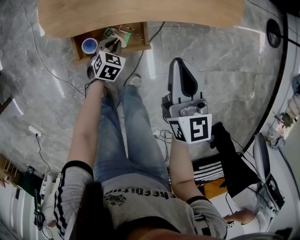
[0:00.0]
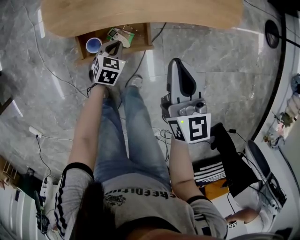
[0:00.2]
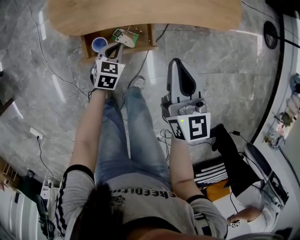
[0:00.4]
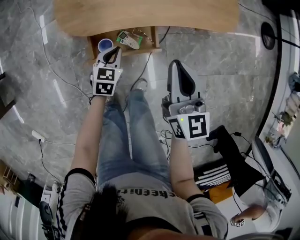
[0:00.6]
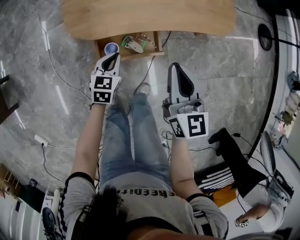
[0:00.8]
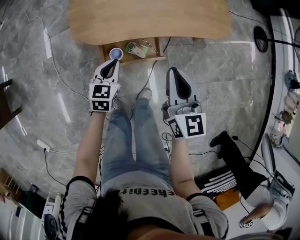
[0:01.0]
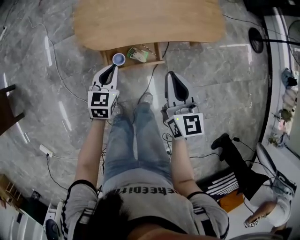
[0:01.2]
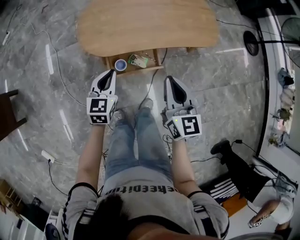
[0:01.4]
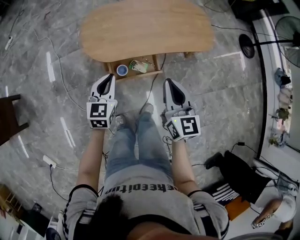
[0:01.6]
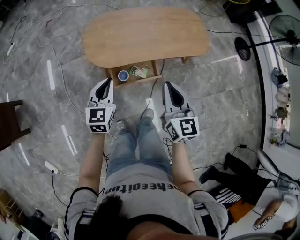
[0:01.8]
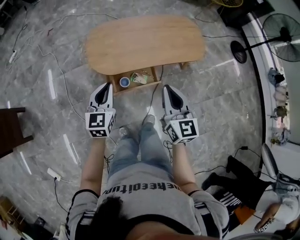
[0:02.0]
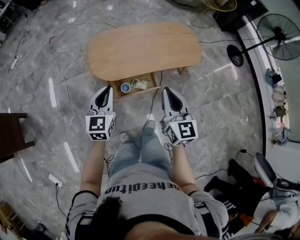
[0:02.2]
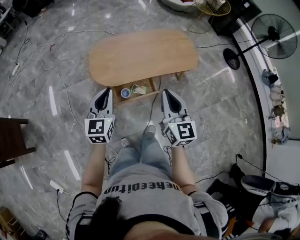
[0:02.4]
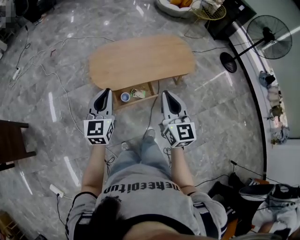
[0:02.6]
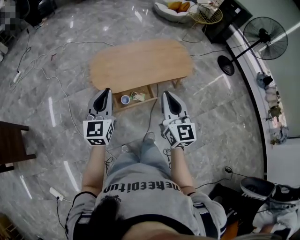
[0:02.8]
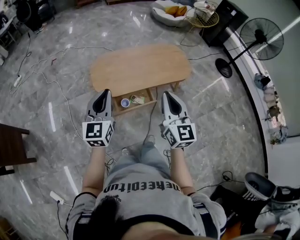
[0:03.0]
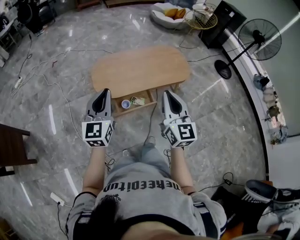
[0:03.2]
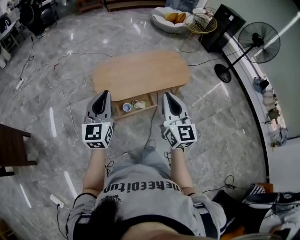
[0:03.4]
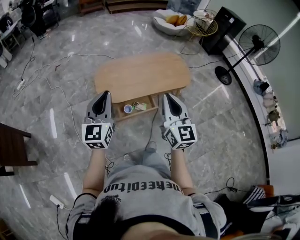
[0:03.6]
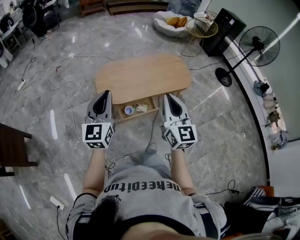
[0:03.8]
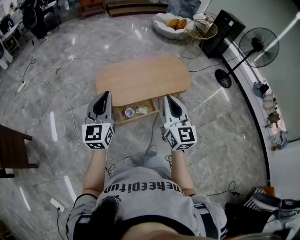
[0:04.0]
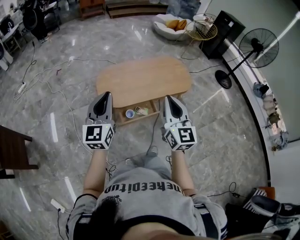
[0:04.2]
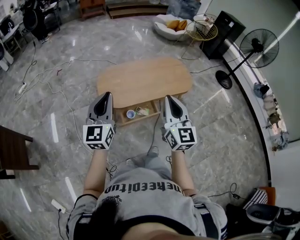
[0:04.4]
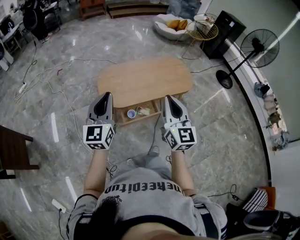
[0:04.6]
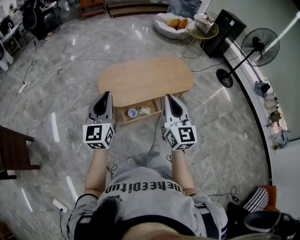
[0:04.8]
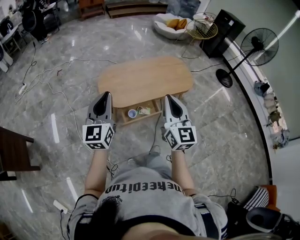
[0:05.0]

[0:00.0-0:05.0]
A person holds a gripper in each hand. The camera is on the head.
0:00.0 to 0:01.6: The left gripper heads upward and to the left, covering about 40 cm, and points its fingers some 30 degrees further upward; the right gripper shifts some 25 cm upward, to the left and backward.
0:01.6 to 0:03.4: The right gripper heads upward and backward, covering roughly 25 cm. Meanwhile the left gripper travels upward by roughly 30 cm, and rotates approximately 30 degrees.
0:03.4 to 0:05.0: There are only small adjustments of the grippers.

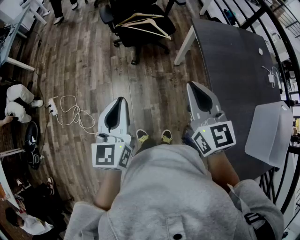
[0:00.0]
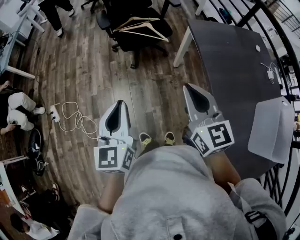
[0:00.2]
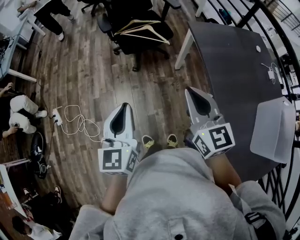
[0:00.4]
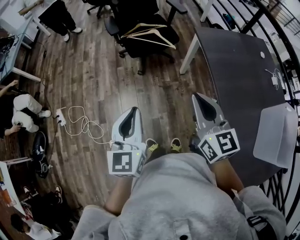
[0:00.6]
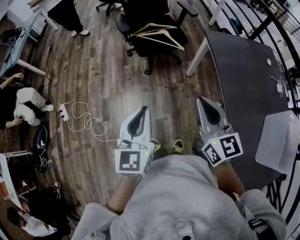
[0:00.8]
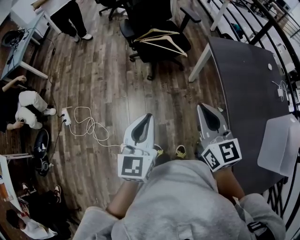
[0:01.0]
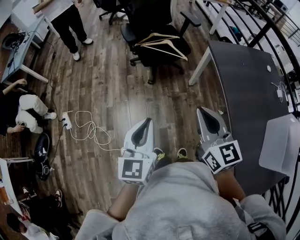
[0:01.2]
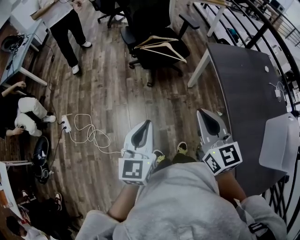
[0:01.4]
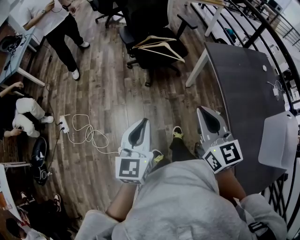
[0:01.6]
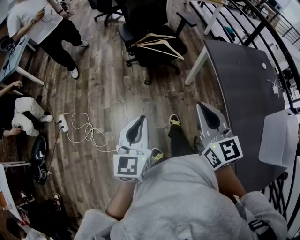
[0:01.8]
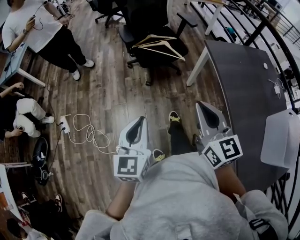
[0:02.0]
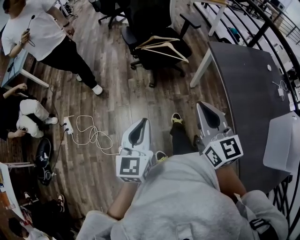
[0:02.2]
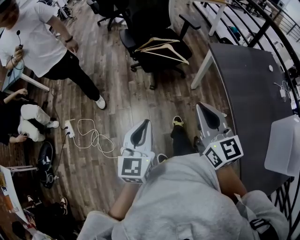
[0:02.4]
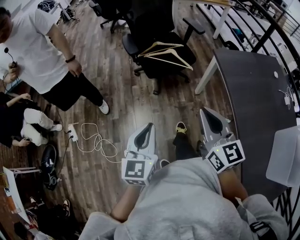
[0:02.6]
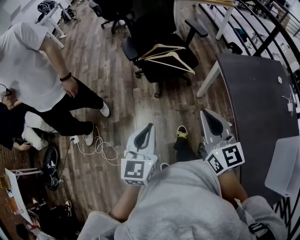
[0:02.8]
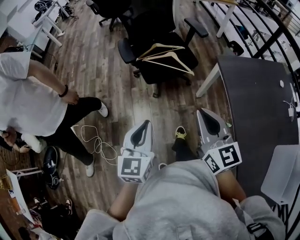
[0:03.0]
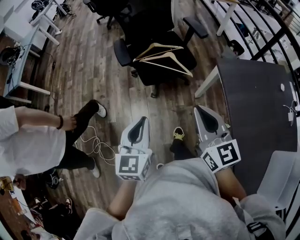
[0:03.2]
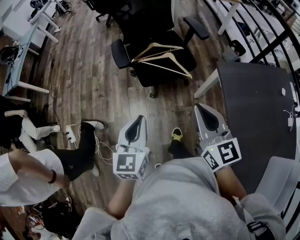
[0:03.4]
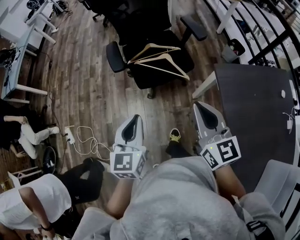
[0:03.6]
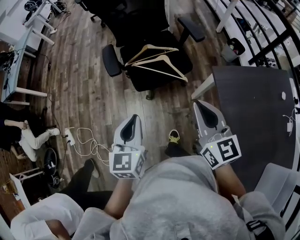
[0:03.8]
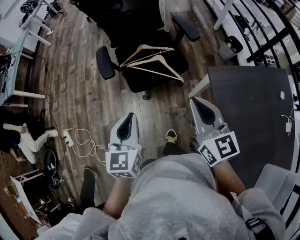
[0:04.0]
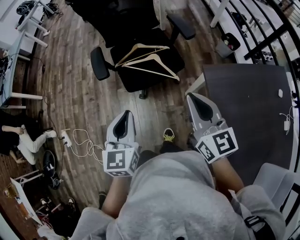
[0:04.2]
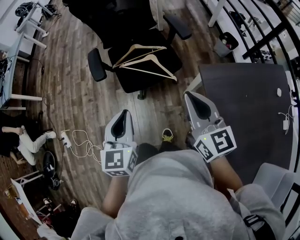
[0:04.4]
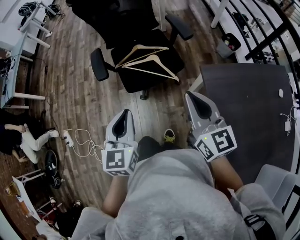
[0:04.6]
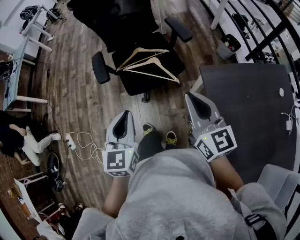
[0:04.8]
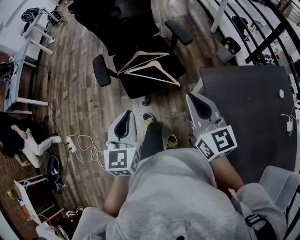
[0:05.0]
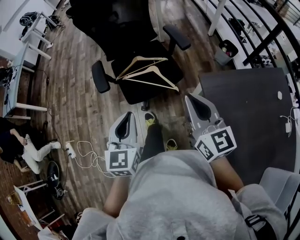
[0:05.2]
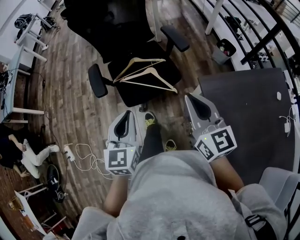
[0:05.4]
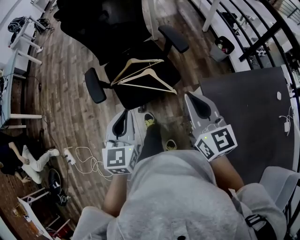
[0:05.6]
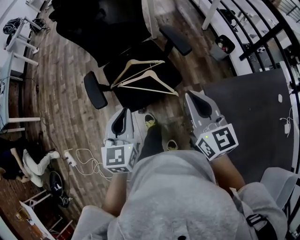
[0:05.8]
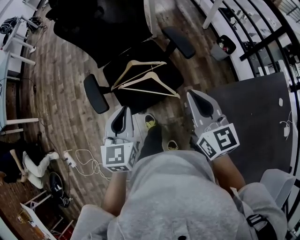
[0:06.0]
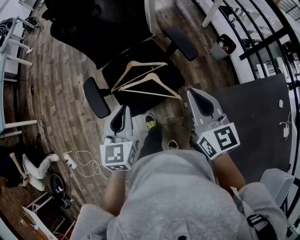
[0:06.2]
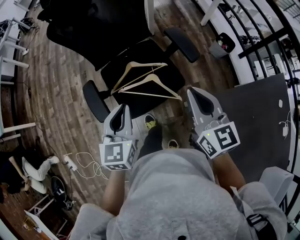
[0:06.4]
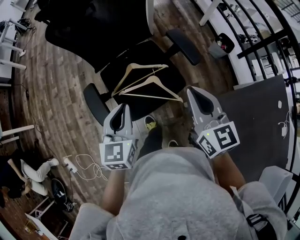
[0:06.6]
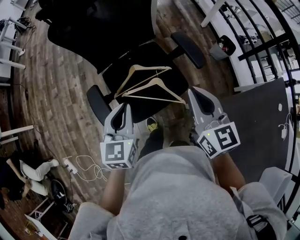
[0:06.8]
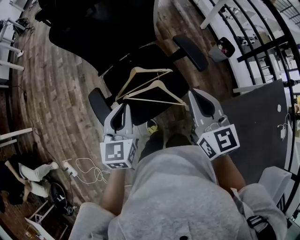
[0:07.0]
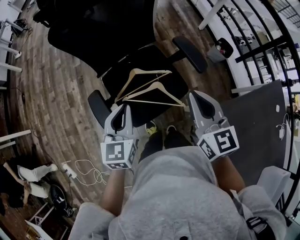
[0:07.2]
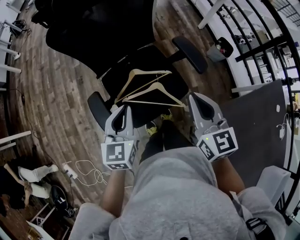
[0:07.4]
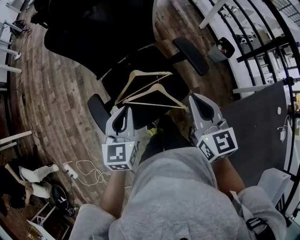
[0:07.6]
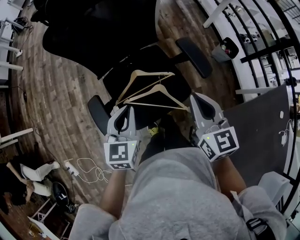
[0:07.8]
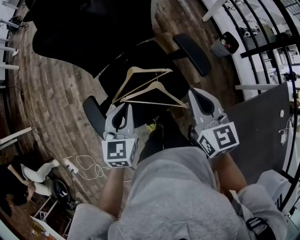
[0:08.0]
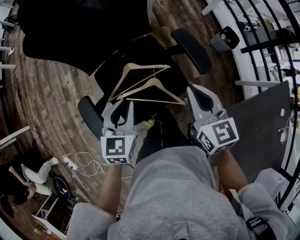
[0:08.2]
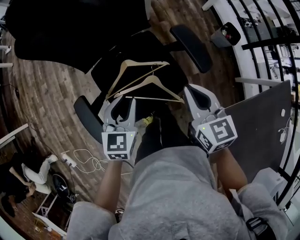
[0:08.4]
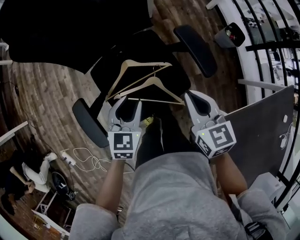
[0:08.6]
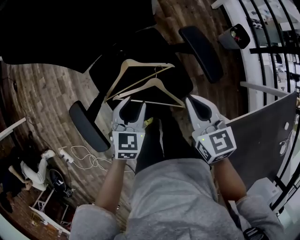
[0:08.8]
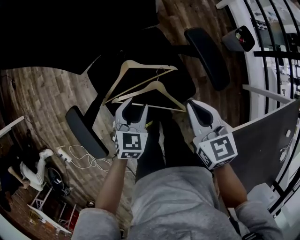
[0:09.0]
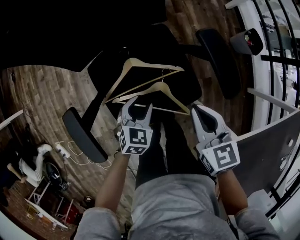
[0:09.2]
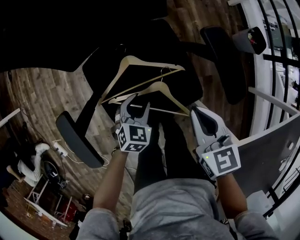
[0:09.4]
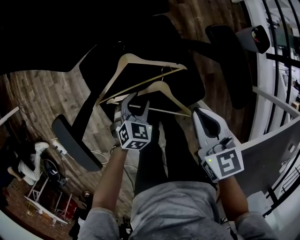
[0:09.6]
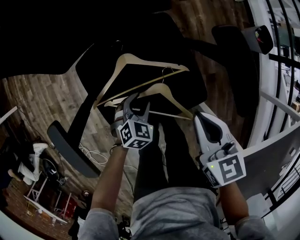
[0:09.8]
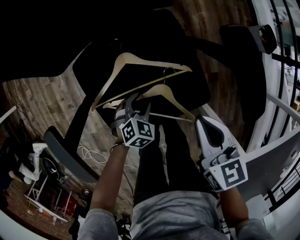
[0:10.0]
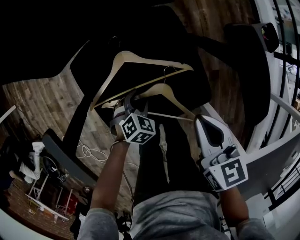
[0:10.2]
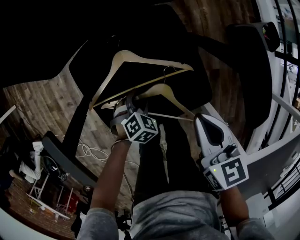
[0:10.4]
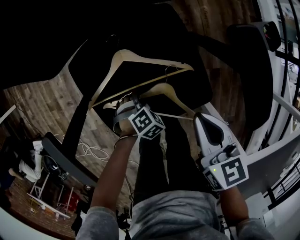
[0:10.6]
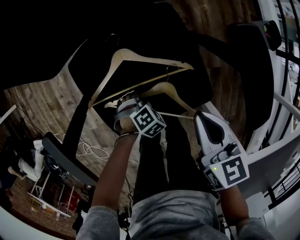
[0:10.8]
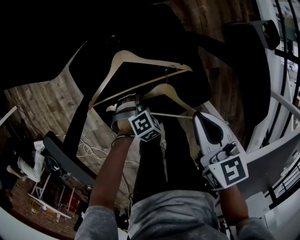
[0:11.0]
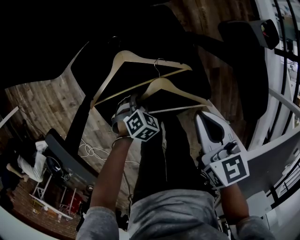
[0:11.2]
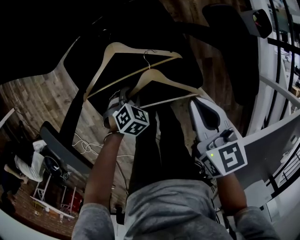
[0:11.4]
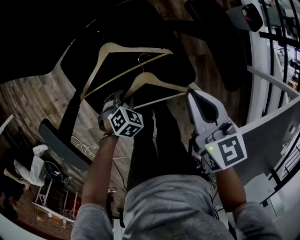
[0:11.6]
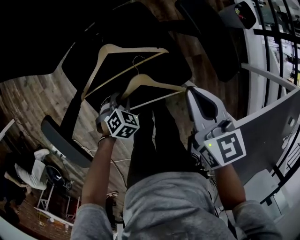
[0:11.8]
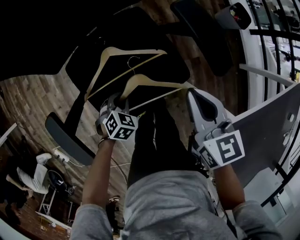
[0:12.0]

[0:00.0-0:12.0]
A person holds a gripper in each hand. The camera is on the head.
0:00.0 to 0:01.6: Both grippers travel together to the left, approximately 5 cm.
0:01.6 to 0:03.0: Both grippers move forward, approximately 20 cm.
0:03.0 to 0:04.4: The two grippers go approximately 25 cm forward and to the right.
0:04.4 to 0:06.0: Both grippers travel together forward, approximately 20 cm.
0:06.0 to 0:07.6: Both grippers move forward and to the left, roughly 15 cm.
0:07.6 to 0:09.0: The two grippers go approximately 25 cm downward and forward. The left gripper swivels some 20 degrees, and opens up. Meanwhile the right gripper rotates about 20 degrees.
0:09.0 to 0:10.4: The left gripper moves downward, some 25 cm, and rotates some 30 degrees, while the right gripper moves downward, about 15 cm.
0:10.4 to 0:12.0: Both grippers travel together upward, some 10 cm. The left gripper closes.

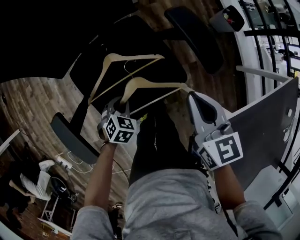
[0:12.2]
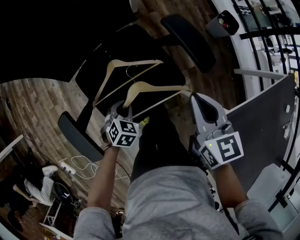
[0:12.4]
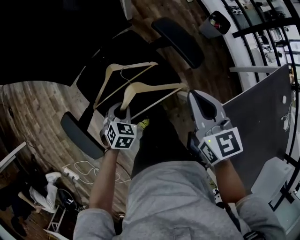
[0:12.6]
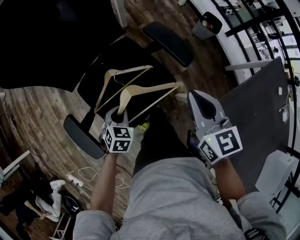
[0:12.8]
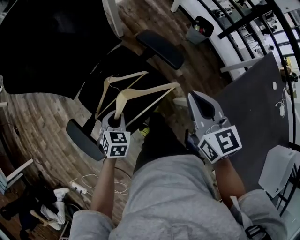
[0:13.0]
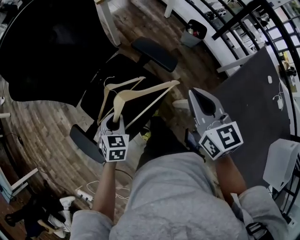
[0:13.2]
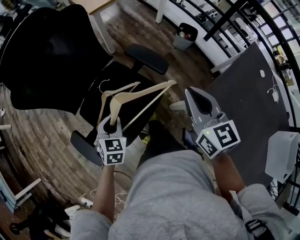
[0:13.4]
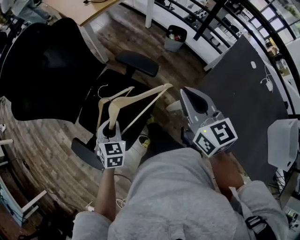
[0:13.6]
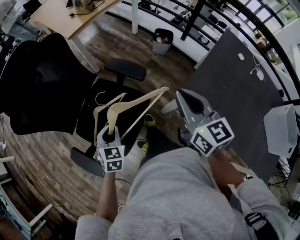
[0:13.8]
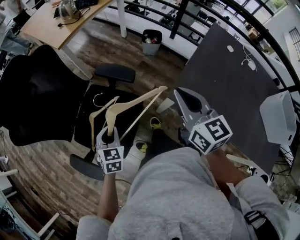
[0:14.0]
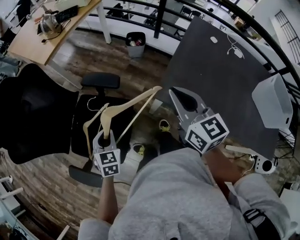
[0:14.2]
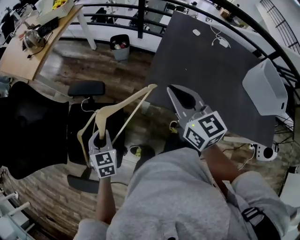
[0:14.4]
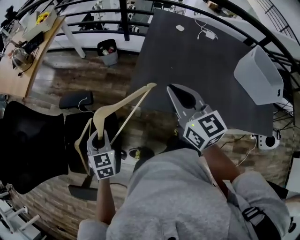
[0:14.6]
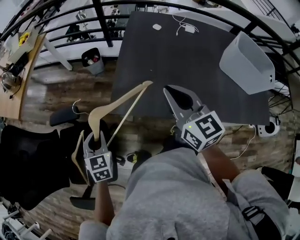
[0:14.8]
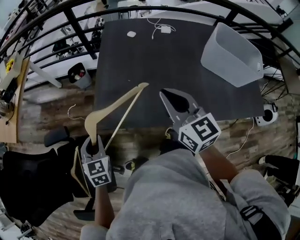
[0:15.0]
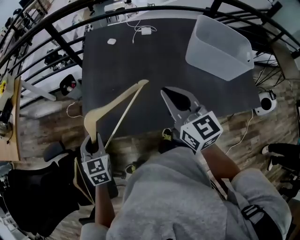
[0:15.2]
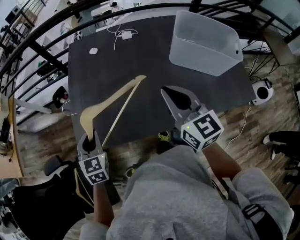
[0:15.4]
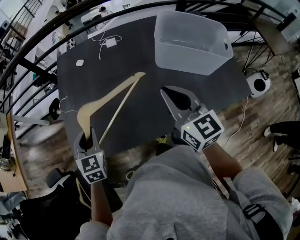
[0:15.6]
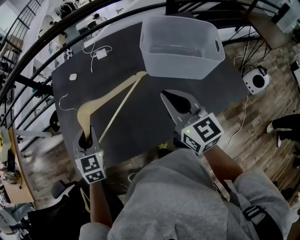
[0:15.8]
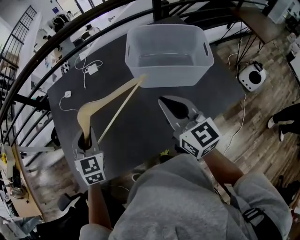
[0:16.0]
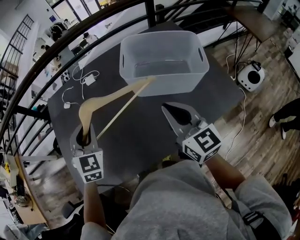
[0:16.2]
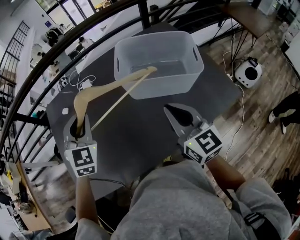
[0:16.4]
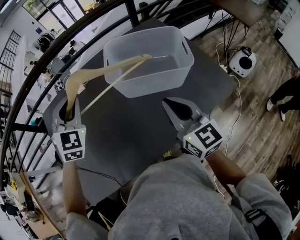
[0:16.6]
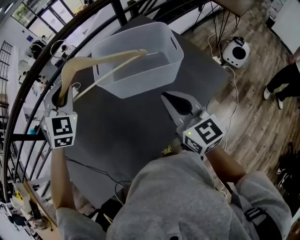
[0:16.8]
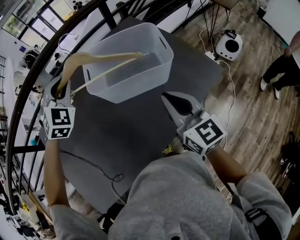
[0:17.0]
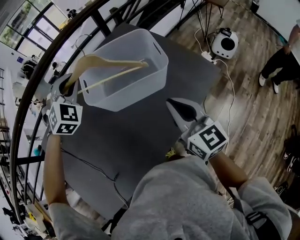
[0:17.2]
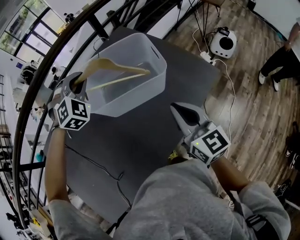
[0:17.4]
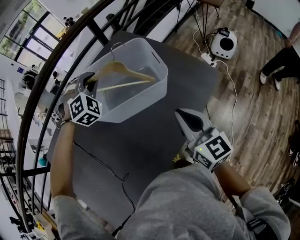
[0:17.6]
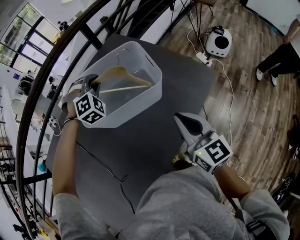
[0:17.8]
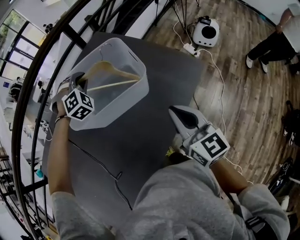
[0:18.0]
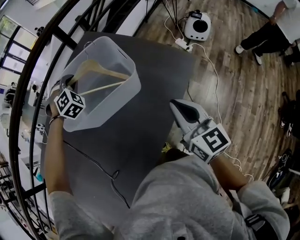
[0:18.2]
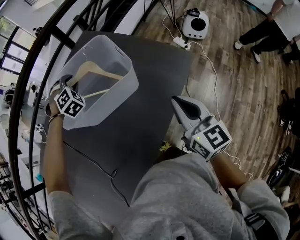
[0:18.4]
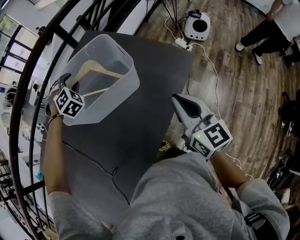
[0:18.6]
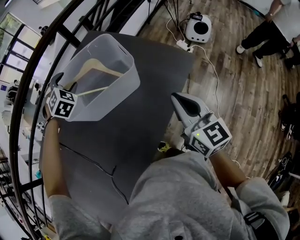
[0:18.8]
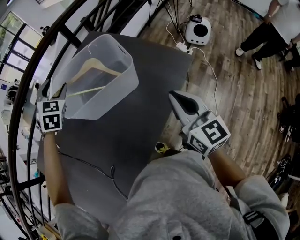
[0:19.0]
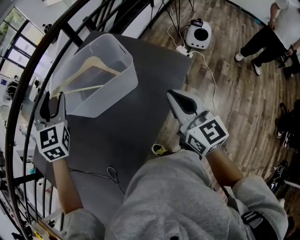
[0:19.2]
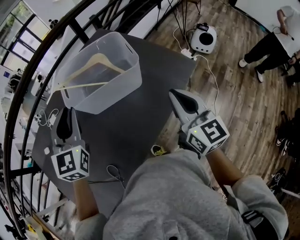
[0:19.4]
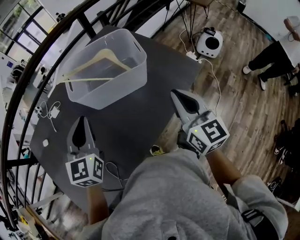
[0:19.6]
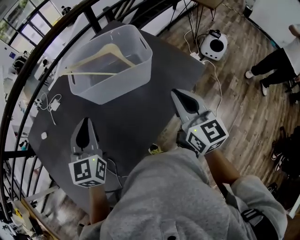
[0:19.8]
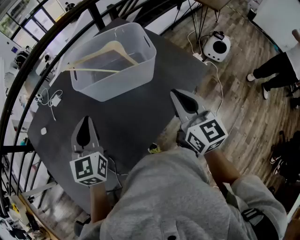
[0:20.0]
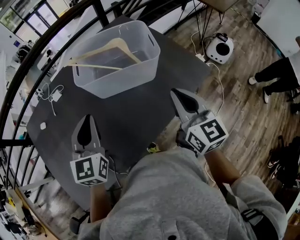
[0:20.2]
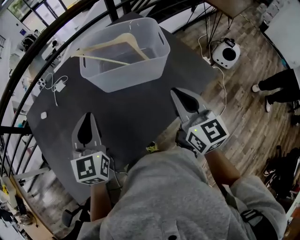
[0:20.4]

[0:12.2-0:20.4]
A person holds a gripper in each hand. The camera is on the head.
0:12.2 to 0:13.8: The left gripper shifts about 25 cm upward, and turns by roughly 30 degrees, while the right gripper shifts some 30 cm upward, to the right and backward, and swivels about 30 degrees.
0:13.8 to 0:15.4: The pair of grippers is taken roughly 50 cm. The left gripper turns by approximately 50 degrees, while the right gripper rotates roughly 50 degrees.
0:15.4 to 0:17.2: The right gripper ends up about 35 cm from where it was, and swivels about 40 degrees; the left gripper shifts by about 60 cm, and rotates around the line of its fingers by about 70 degrees, clockwise from behind.
0:17.2 to 0:18.8: The left gripper is displaced downward, to the right and forward by roughly 15 cm, and opens up. Meanwhile the right gripper is displaced to the right by approximately 10 cm.
0:18.8 to 0:20.4: The right gripper shifts some 10 cm to the left; the left gripper shifts about 30 cm backward, rolls counterclockwise, seen from behind, by roughly 60 degrees, and closes up.
